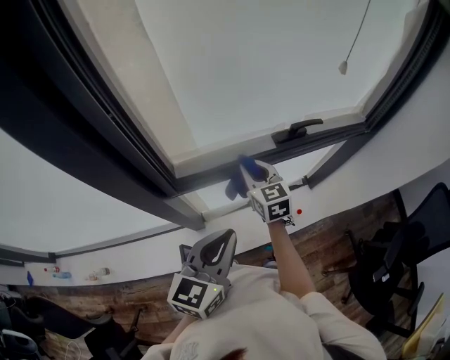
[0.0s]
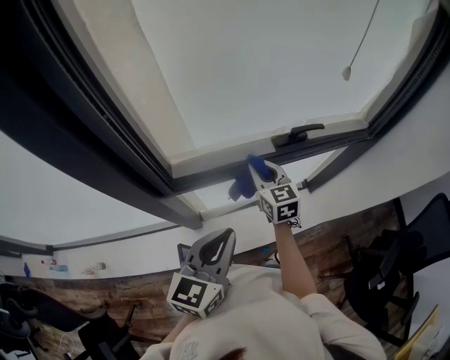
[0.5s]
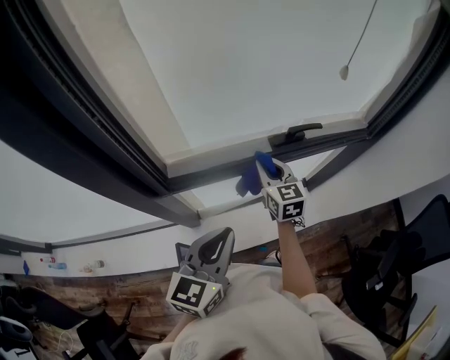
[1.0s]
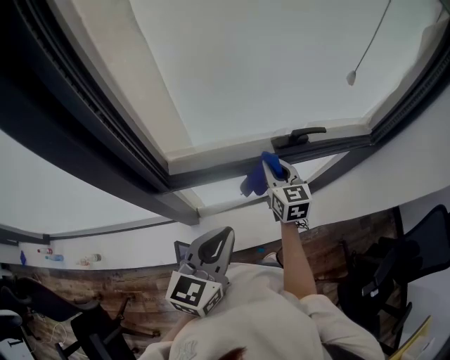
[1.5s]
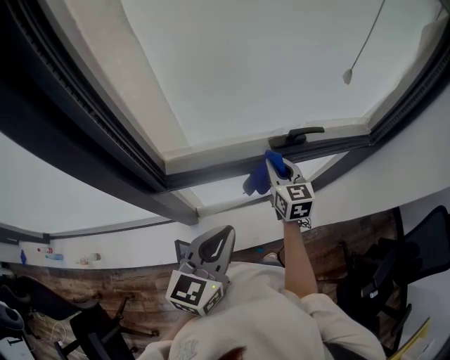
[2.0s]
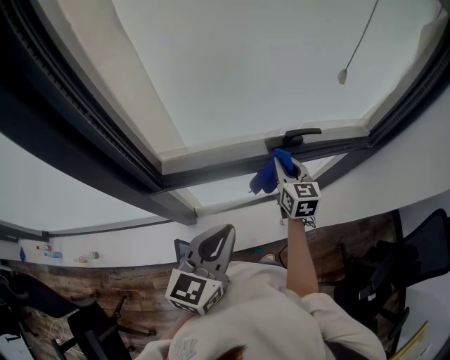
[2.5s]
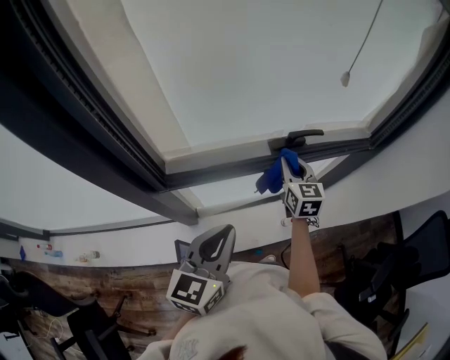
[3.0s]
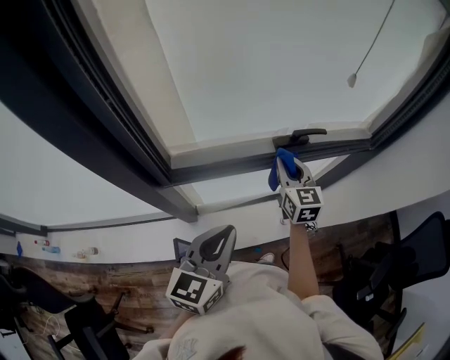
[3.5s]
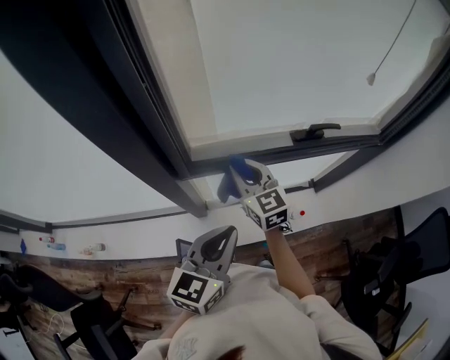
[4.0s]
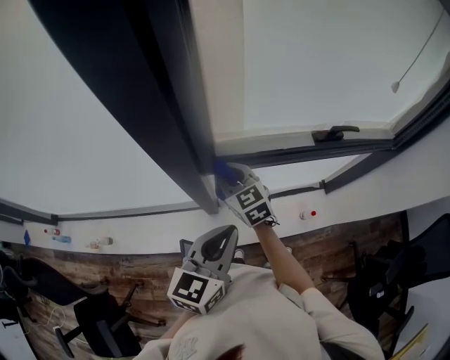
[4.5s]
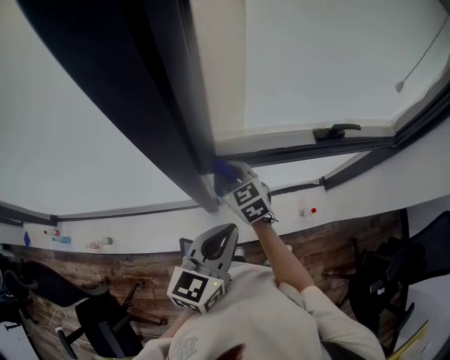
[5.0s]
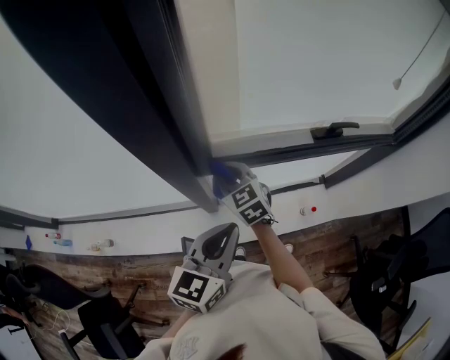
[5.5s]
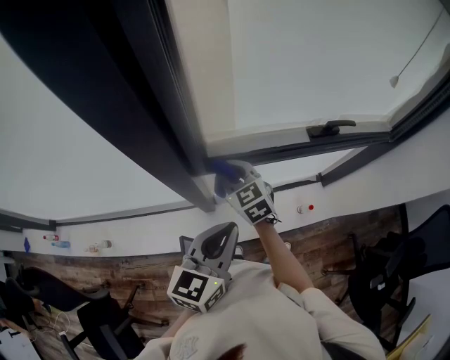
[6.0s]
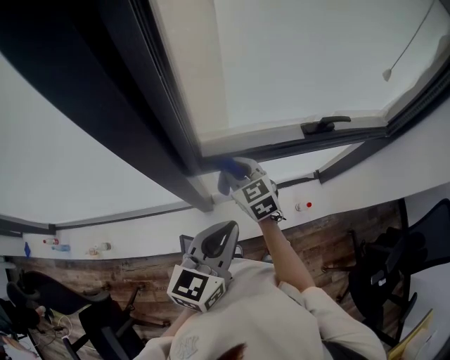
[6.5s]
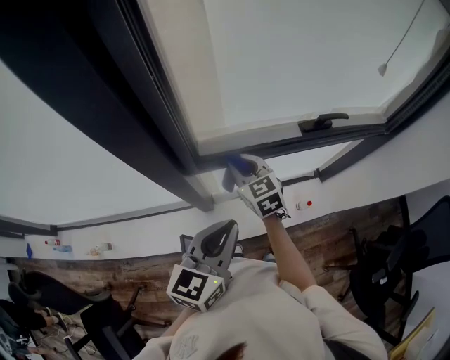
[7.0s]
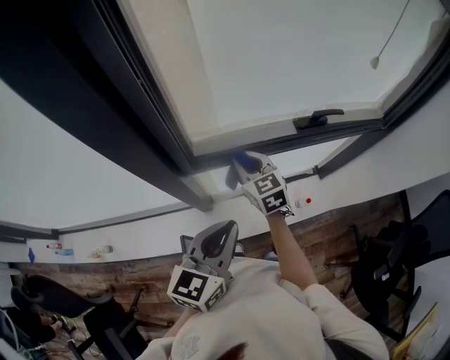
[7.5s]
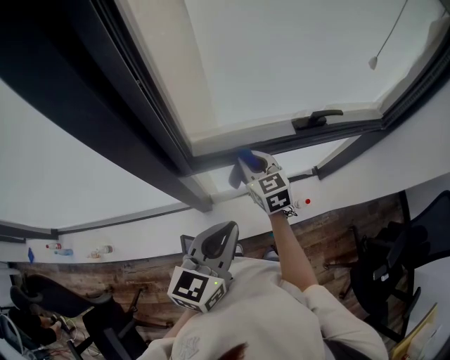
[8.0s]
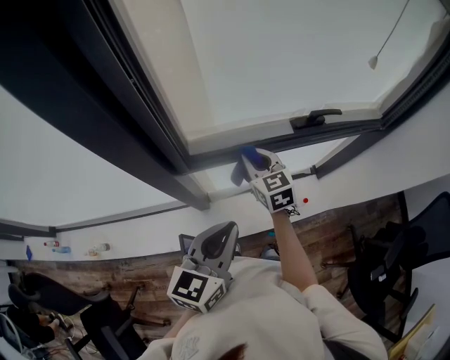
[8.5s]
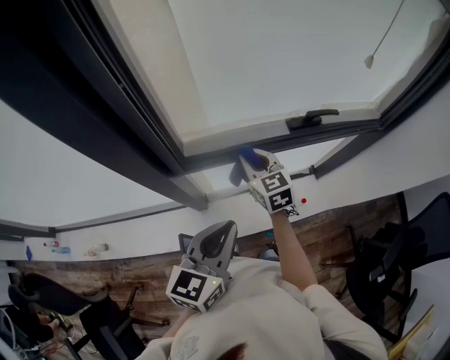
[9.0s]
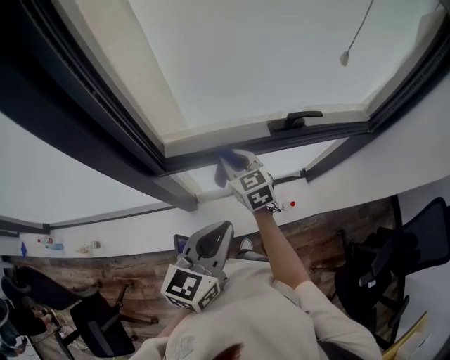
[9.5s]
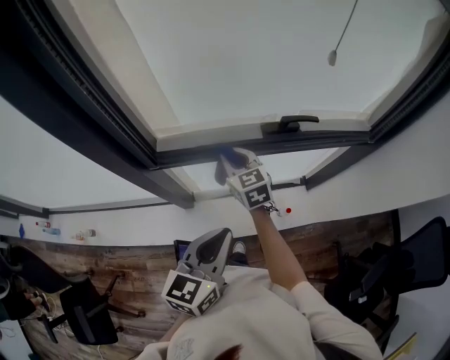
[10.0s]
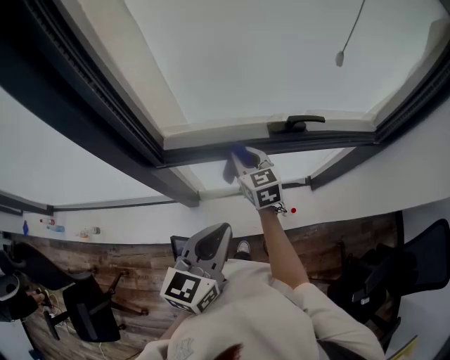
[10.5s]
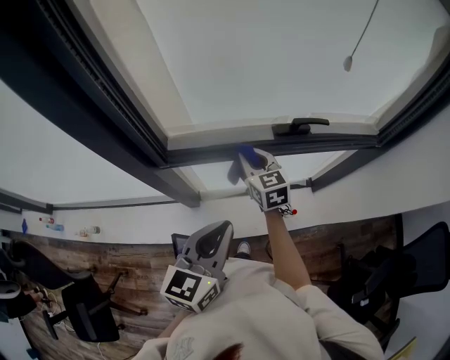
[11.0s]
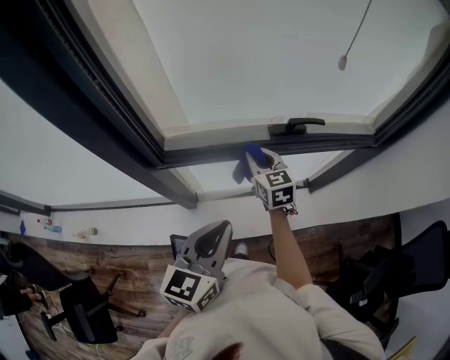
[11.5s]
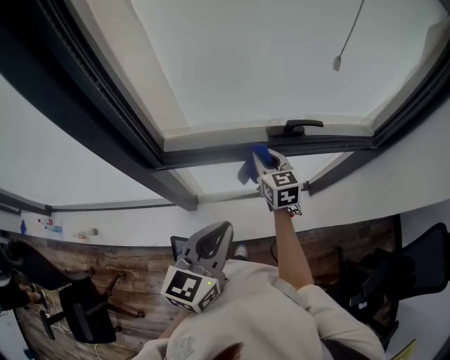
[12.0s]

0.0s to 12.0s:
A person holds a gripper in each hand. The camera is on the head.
0.0s to 2.0s: The right gripper shifts approximately 10 cm to the right.
2.0s to 4.0s: The left gripper heads to the left, covering about 5 cm. Meanwhile the right gripper travels to the left and backward by some 20 cm.
4.0s to 6.0s: The right gripper travels to the left and downward by about 10 cm, while the left gripper ends up about 5 cm from where it was.
6.0s to 8.0s: The right gripper shifts some 10 cm to the right.
8.0s to 10.0s: The right gripper is displaced to the right by roughly 5 cm, while the left gripper goes roughly 10 cm to the right.
10.0s to 12.0s: The right gripper moves to the right, roughly 10 cm.

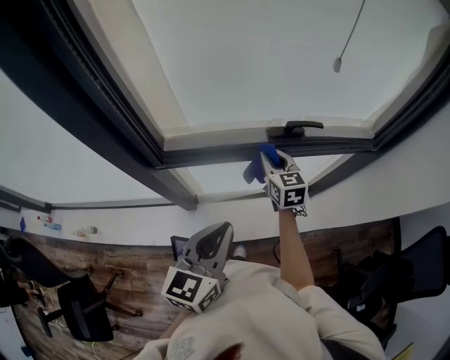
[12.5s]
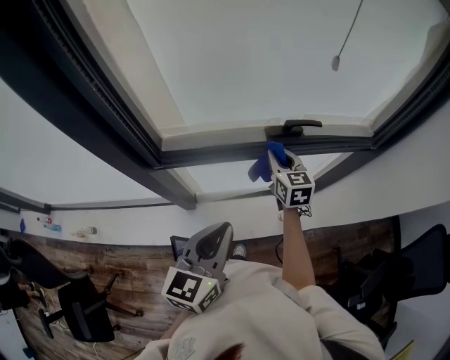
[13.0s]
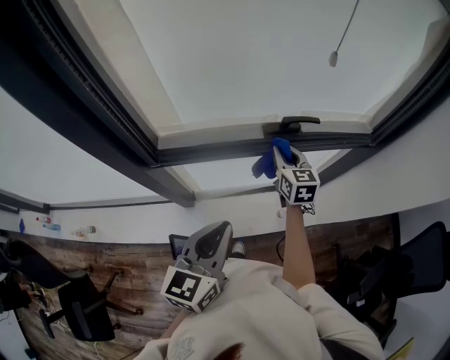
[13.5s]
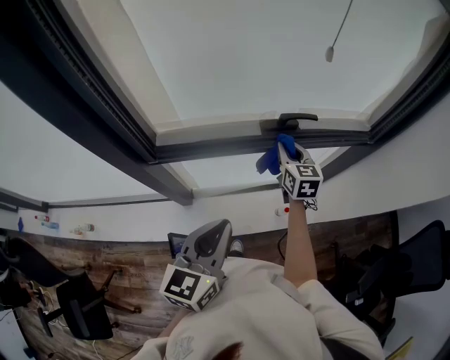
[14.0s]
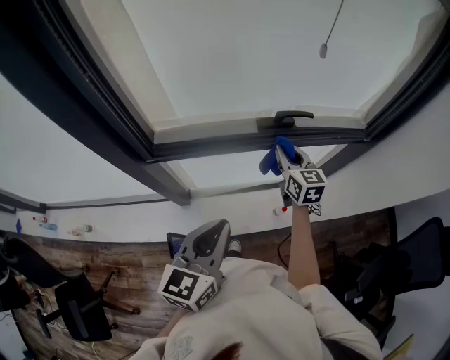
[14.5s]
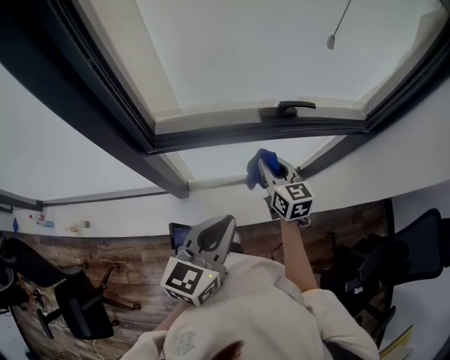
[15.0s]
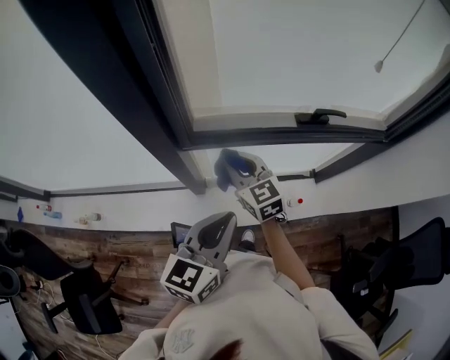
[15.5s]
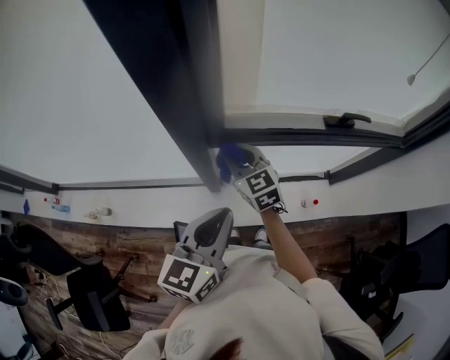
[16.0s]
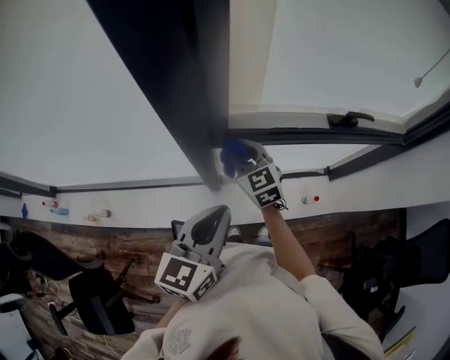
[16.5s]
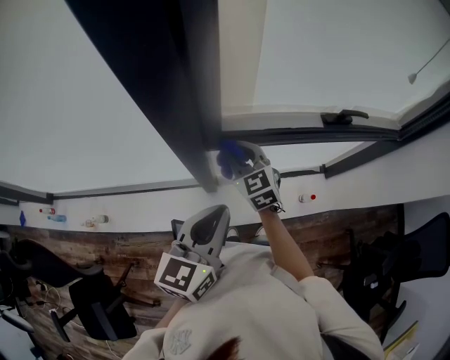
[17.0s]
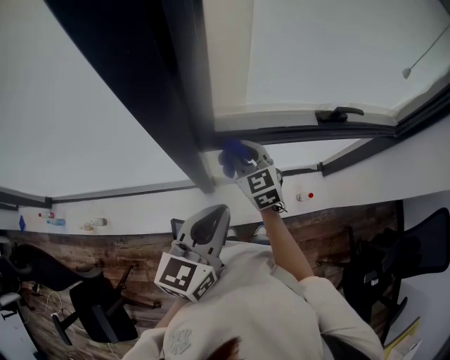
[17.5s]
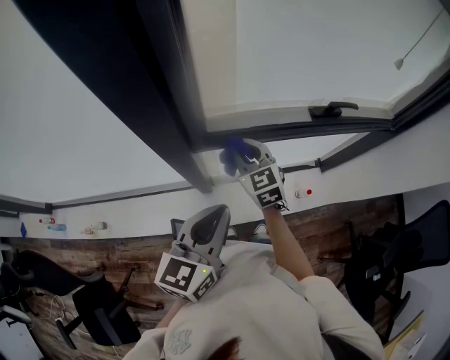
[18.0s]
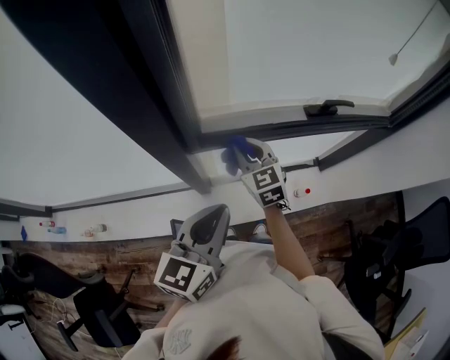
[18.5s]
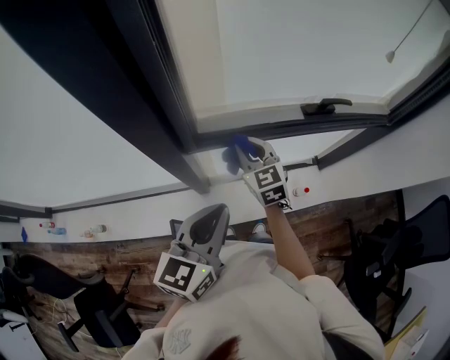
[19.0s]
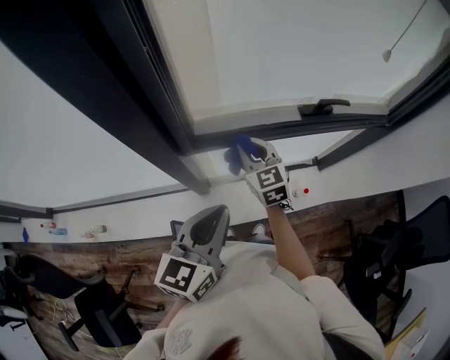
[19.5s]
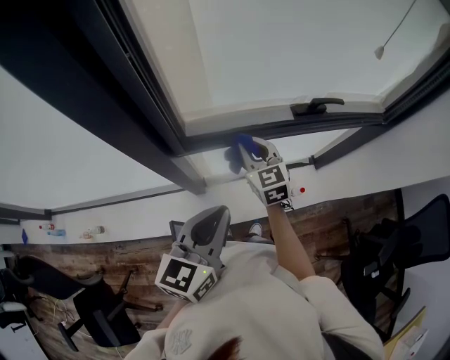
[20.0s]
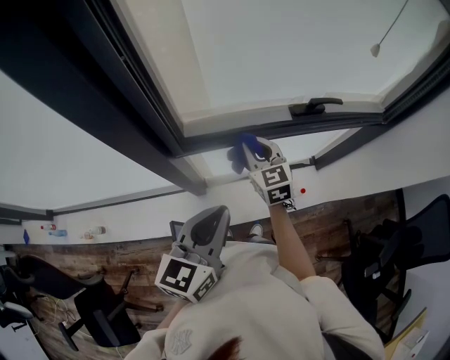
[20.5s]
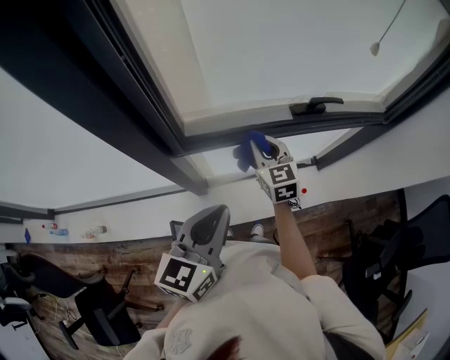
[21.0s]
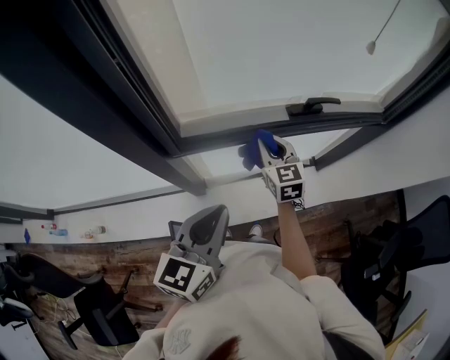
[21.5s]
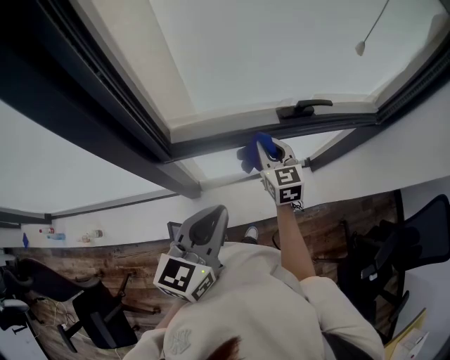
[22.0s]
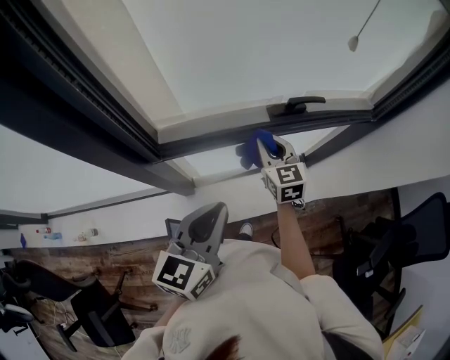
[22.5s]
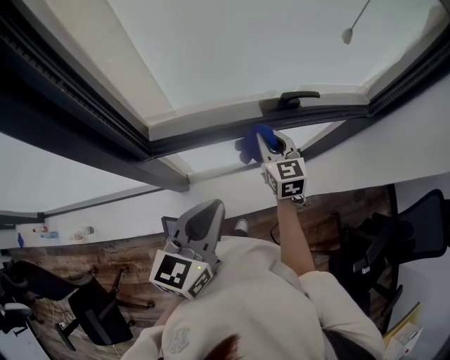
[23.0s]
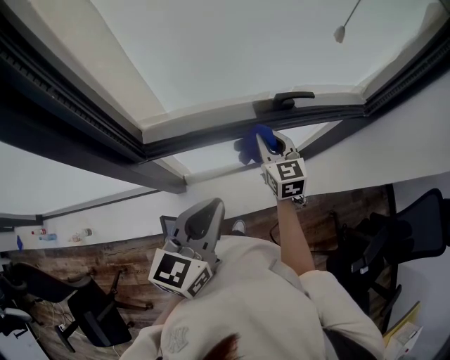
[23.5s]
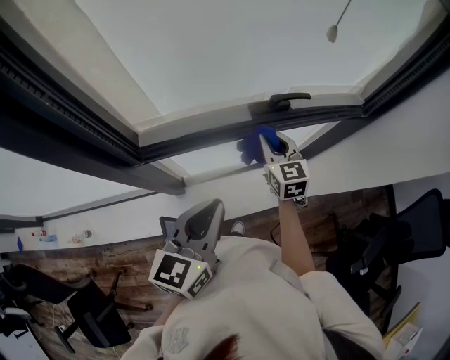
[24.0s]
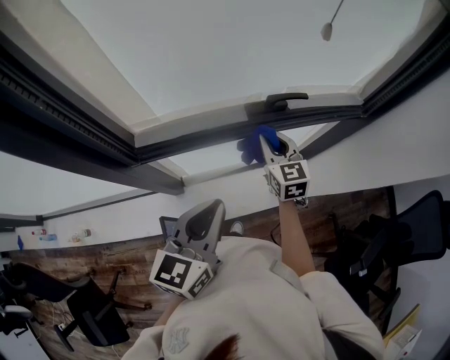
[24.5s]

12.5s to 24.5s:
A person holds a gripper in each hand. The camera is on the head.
12.5s to 14.5s: The right gripper is displaced to the right by some 10 cm.
14.5s to 16.5s: The left gripper moves to the left, about 20 cm, while the right gripper shifts approximately 40 cm to the left, and swivels some 30 degrees.
16.5s to 18.5s: The right gripper shifts roughly 10 cm to the right.
18.5s to 20.5s: The right gripper goes about 10 cm to the right.
20.5s to 22.5s: The left gripper heads to the right, covering roughly 5 cm. The right gripper travels to the right by some 10 cm.
22.5s to 24.5s: Both grippers travel together to the right, about 5 cm.

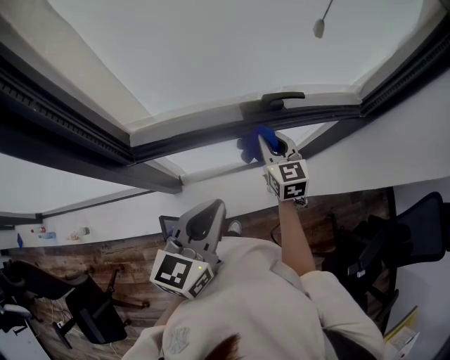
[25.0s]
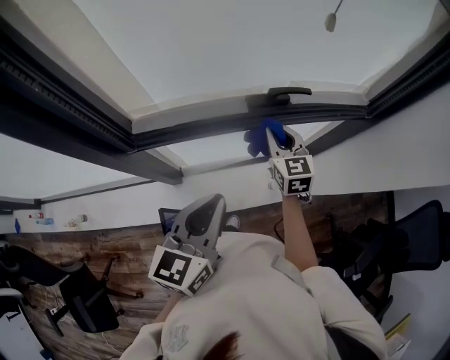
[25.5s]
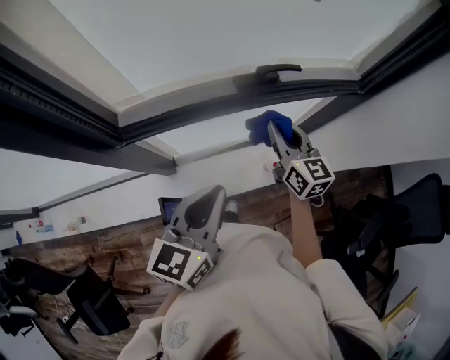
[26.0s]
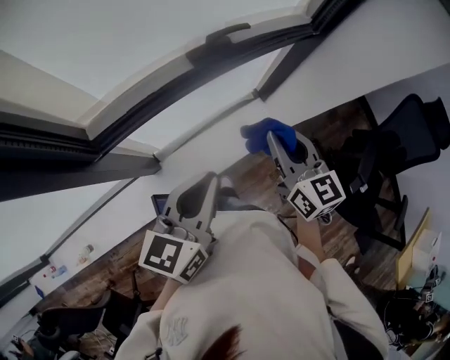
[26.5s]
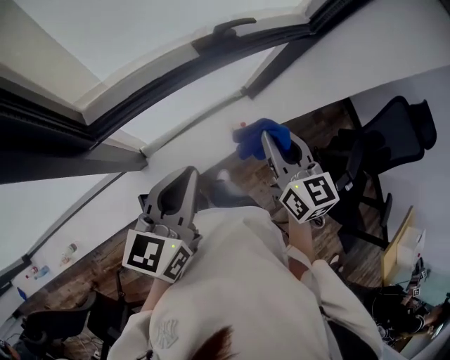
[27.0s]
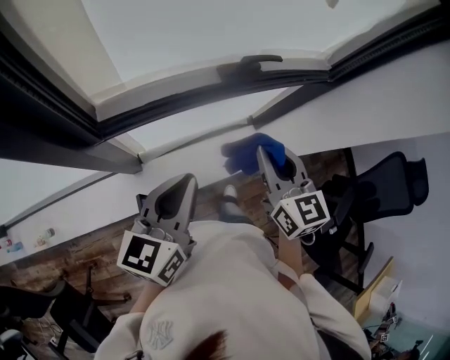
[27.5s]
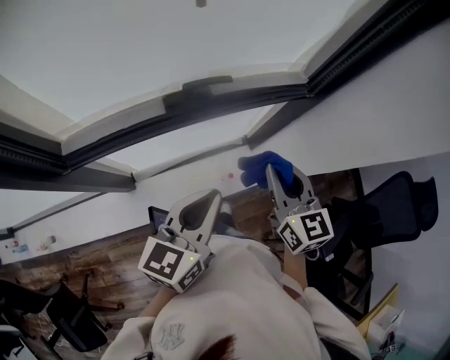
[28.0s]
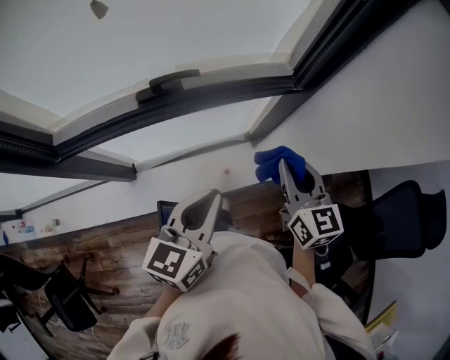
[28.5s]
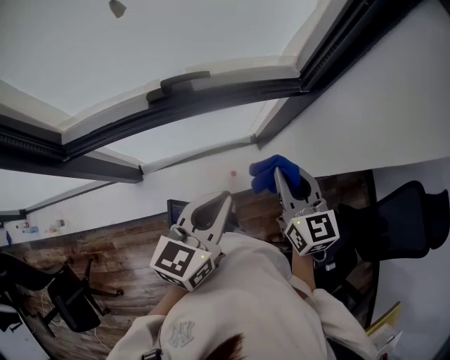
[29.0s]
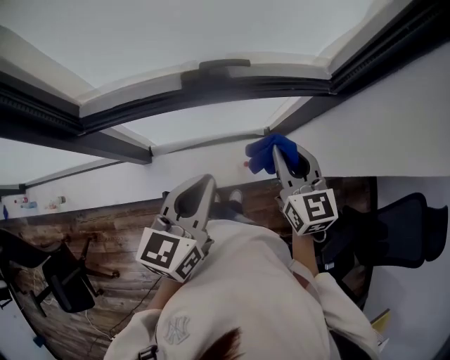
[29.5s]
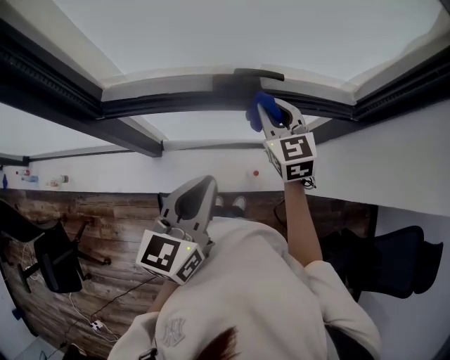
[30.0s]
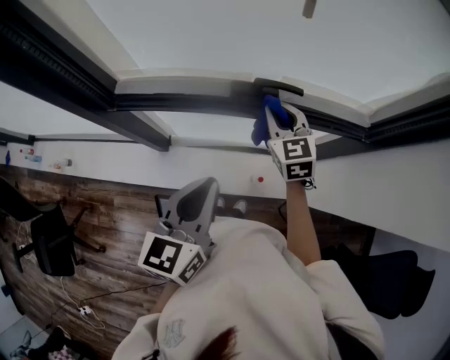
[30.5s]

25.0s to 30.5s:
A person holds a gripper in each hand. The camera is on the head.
25.0s to 27.0s: The left gripper shifts by some 5 cm. The right gripper travels backward by roughly 20 cm, and swivels approximately 20 degrees.
27.0s to 28.5s: The left gripper is displaced to the right by about 30 cm; the right gripper moves to the right and forward, approximately 30 cm.
28.5s to 30.5s: The right gripper moves to the left and forward, about 30 cm, and swivels some 30 degrees; the left gripper moves to the left, roughly 15 cm, and turns by approximately 20 degrees.
